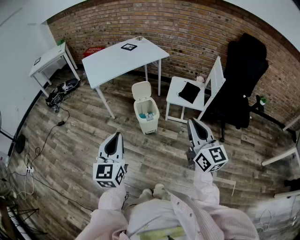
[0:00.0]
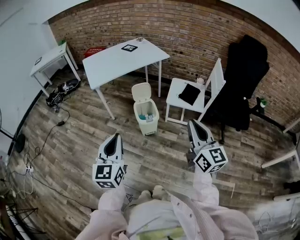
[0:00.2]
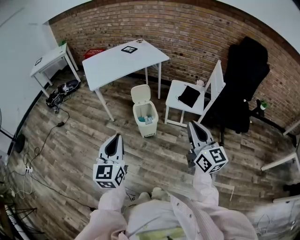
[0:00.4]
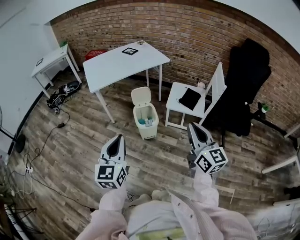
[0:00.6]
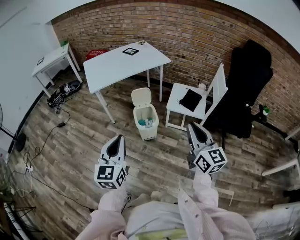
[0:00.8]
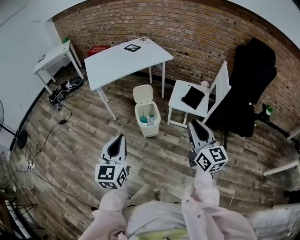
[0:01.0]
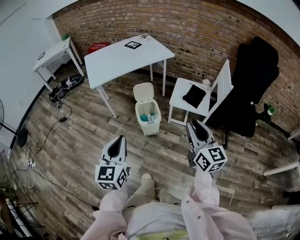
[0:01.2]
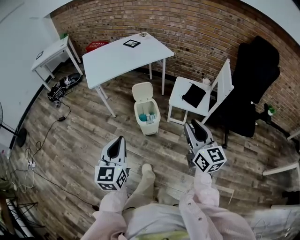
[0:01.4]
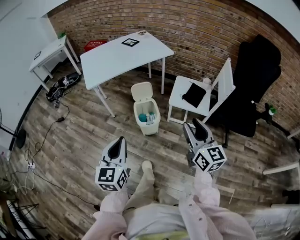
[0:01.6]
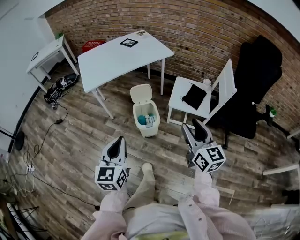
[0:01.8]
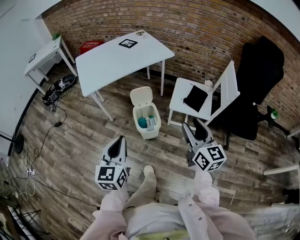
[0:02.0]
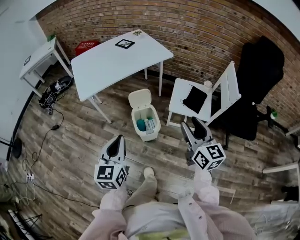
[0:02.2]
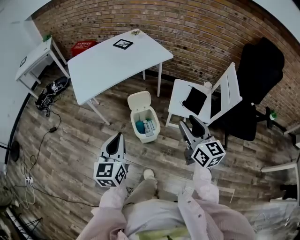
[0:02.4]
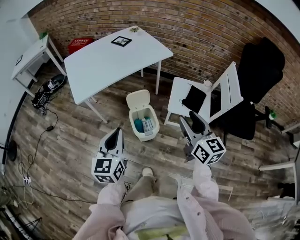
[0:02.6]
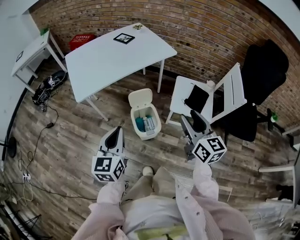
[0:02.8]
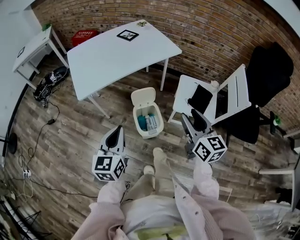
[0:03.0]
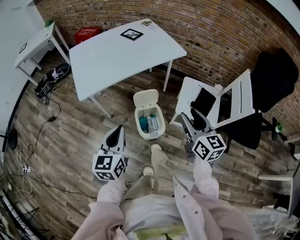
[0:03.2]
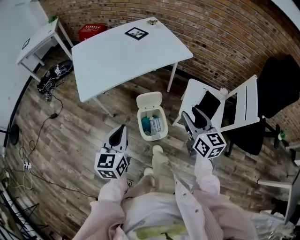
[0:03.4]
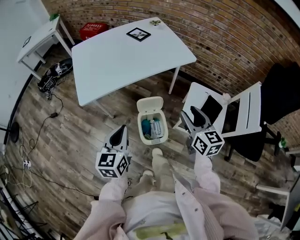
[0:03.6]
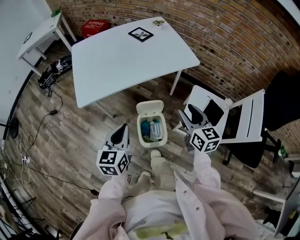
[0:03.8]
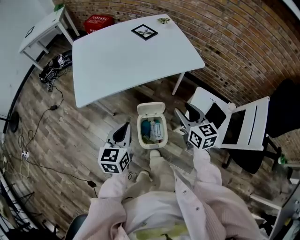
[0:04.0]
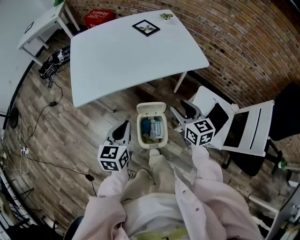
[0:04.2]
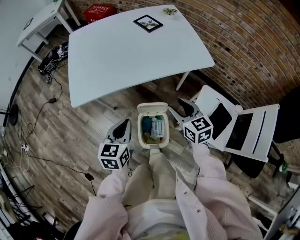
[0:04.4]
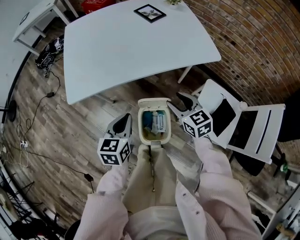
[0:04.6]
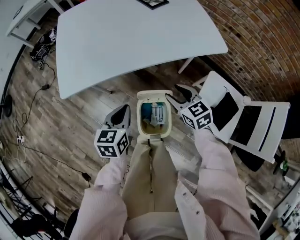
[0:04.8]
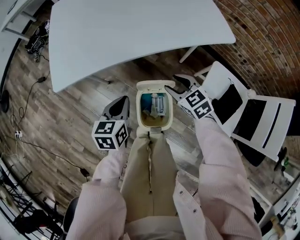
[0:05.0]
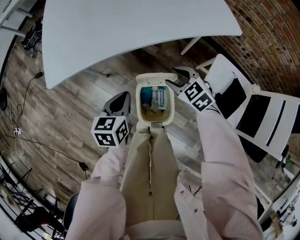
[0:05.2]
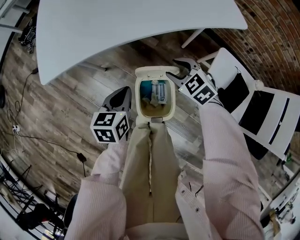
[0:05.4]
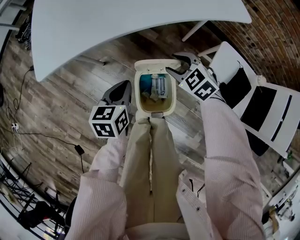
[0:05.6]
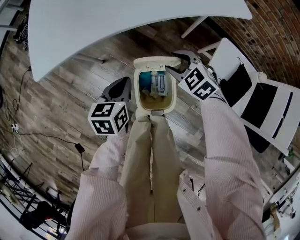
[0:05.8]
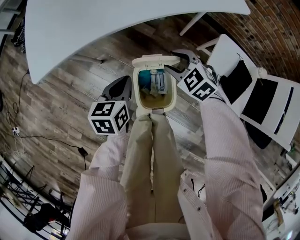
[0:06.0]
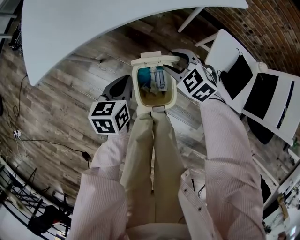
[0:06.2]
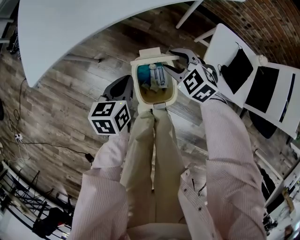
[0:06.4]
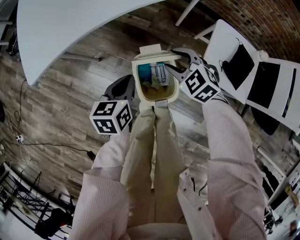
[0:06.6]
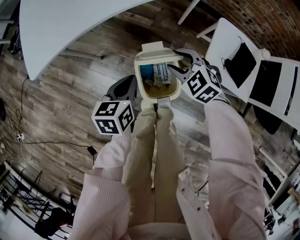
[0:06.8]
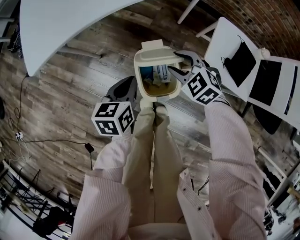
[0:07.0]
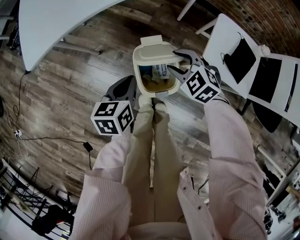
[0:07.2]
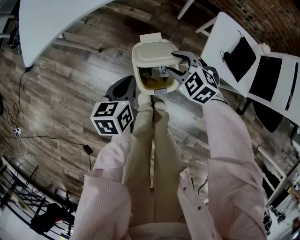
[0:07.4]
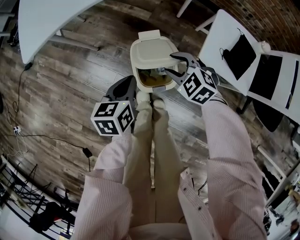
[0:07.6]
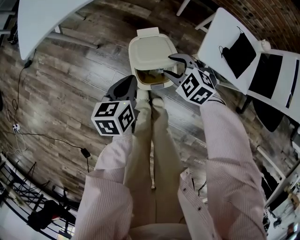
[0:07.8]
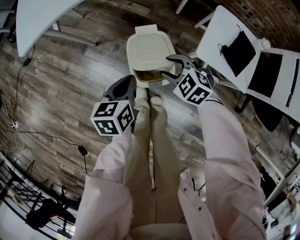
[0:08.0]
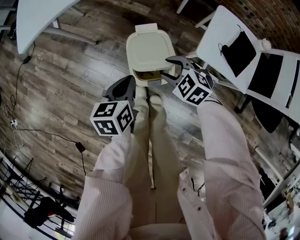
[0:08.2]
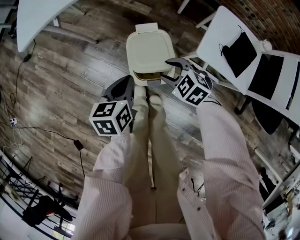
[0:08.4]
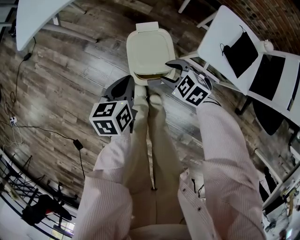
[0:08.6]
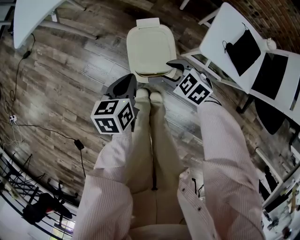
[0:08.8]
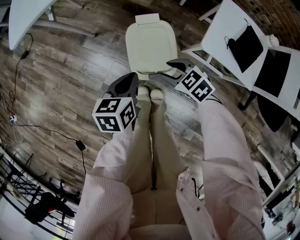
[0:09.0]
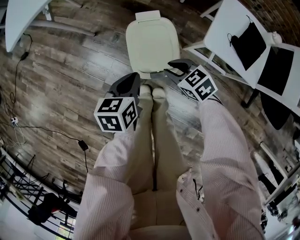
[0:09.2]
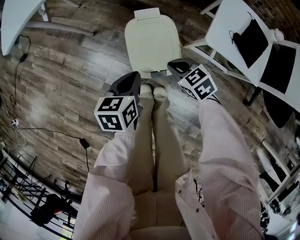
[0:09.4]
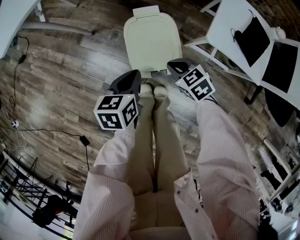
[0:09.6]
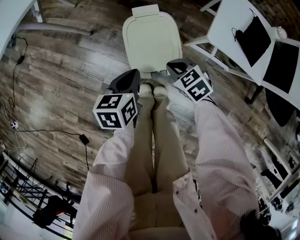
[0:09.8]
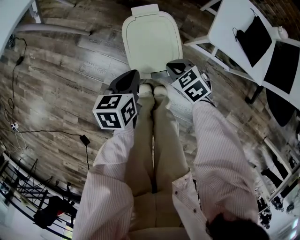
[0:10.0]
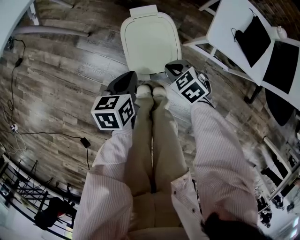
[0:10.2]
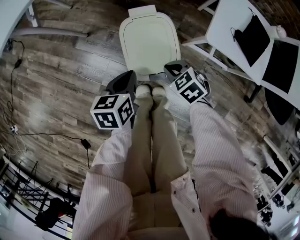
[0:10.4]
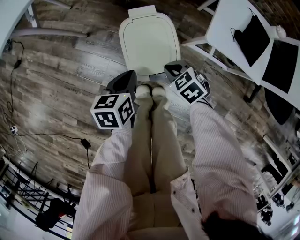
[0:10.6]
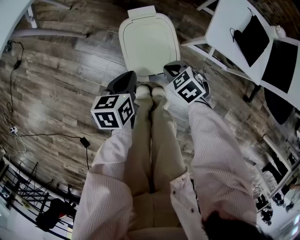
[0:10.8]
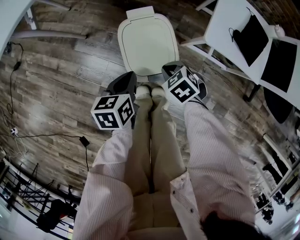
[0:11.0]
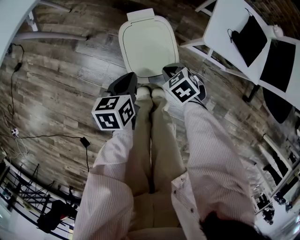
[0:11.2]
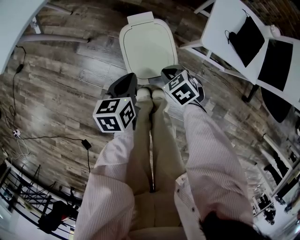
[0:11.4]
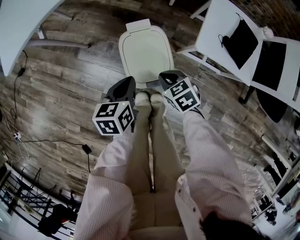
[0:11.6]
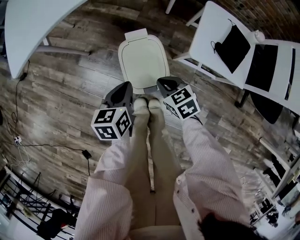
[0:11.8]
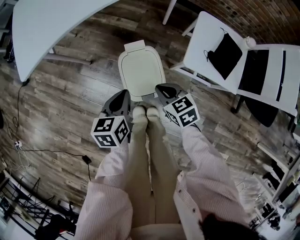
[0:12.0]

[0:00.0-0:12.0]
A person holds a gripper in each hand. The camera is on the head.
0:00.0 to 0:01.6: The right gripper shifts about 10 cm forward and downward, and opens up. Meanwhile the left gripper travels forward by approximately 5 cm.
0:01.6 to 0:03.0: The two grippers go some 20 cm forward.
0:03.0 to 0:04.4: Both grippers travel together forward and downward, about 25 cm. The right gripper rotates about 30 degrees.
0:04.4 to 0:06.0: The grippers both shift downward by approximately 15 cm. The right gripper changes its angle by approximately 40 degrees.
0:06.0 to 0:07.6: Both grippers travel together backward, about 10 cm.
0:07.6 to 0:09.0: The left gripper moves about 5 cm; the right gripper travels downward and backward by roughly 10 cm, and turns by roughly 20 degrees.
0:09.0 to 0:10.4: The two grippers go about 5 cm downward. The right gripper closes.
0:10.4 to 0:12.0: Both grippers travel together upward, approximately 15 cm. The right gripper rotates roughly 30 degrees.

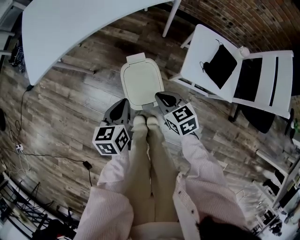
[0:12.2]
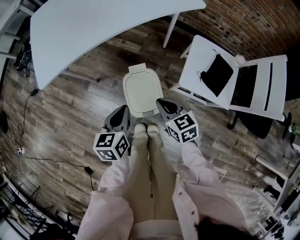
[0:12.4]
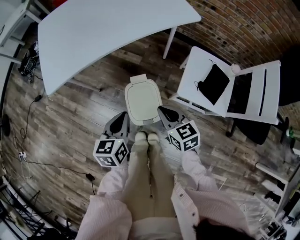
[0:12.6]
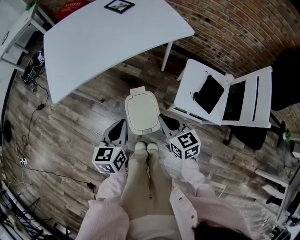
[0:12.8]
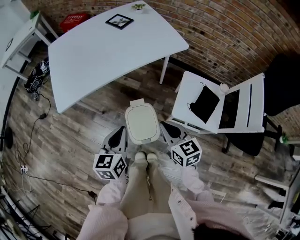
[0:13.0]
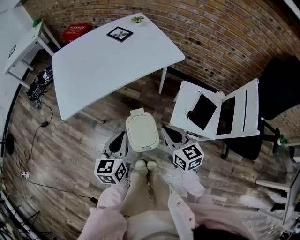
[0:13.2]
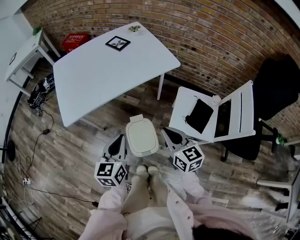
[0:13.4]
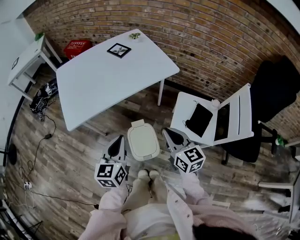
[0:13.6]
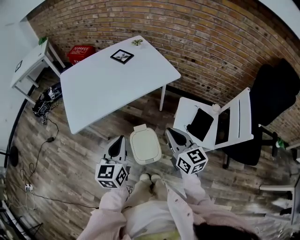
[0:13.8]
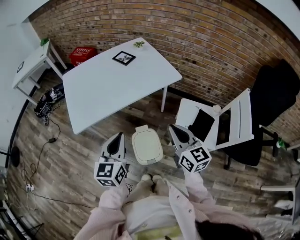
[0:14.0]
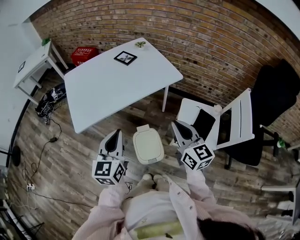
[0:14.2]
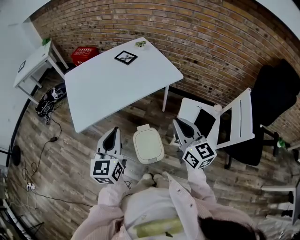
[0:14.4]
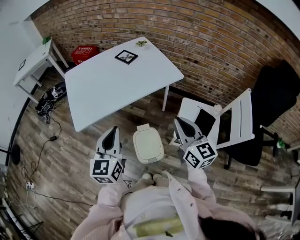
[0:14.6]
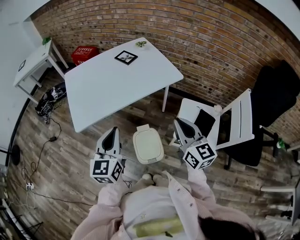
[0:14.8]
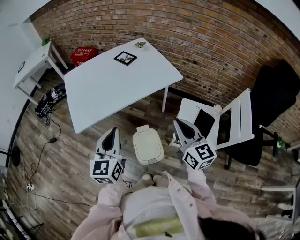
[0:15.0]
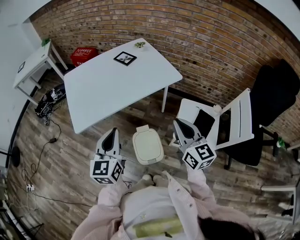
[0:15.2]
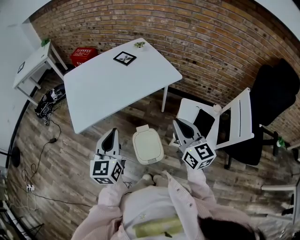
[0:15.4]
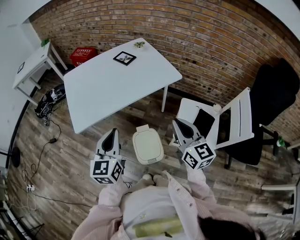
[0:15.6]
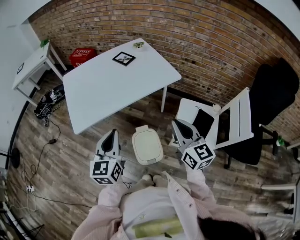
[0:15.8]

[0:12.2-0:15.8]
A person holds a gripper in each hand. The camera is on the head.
0:12.2 to 0:14.0: Both grippers travel together upward, some 30 cm. The left gripper changes its angle by approximately 30 degrees; the right gripper tilts its fingers about 40 degrees upward.
0:14.0 to 0:15.8: There are only small adjustments of the grippers.

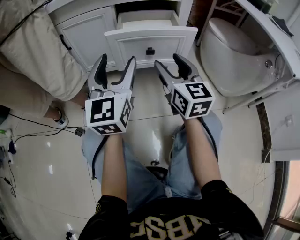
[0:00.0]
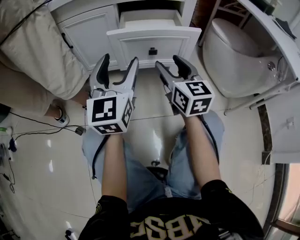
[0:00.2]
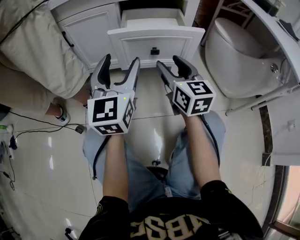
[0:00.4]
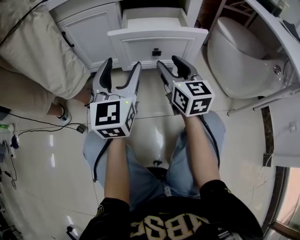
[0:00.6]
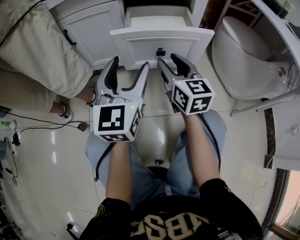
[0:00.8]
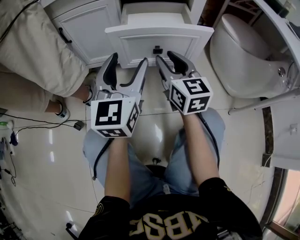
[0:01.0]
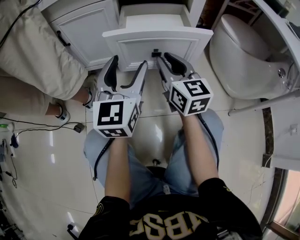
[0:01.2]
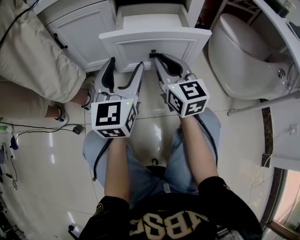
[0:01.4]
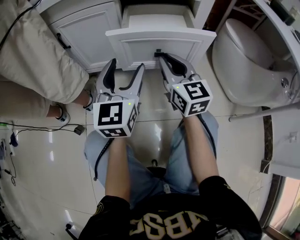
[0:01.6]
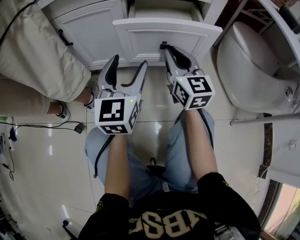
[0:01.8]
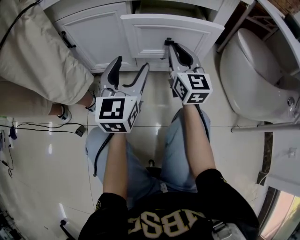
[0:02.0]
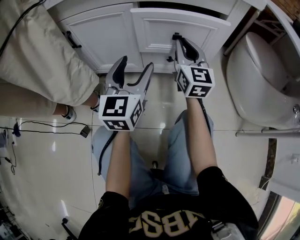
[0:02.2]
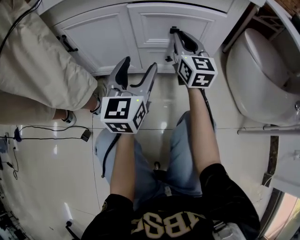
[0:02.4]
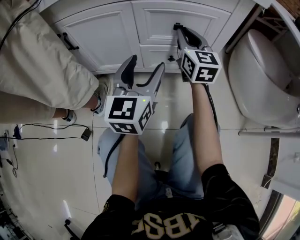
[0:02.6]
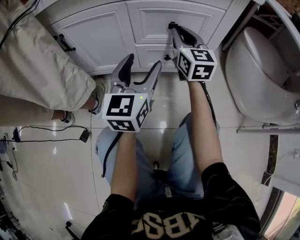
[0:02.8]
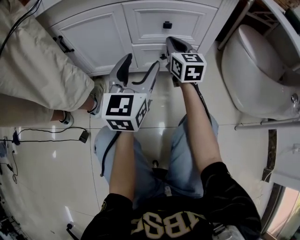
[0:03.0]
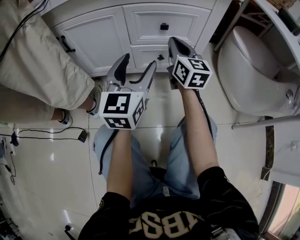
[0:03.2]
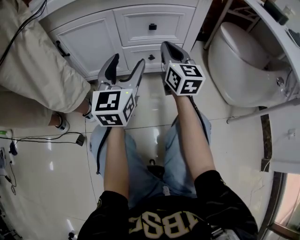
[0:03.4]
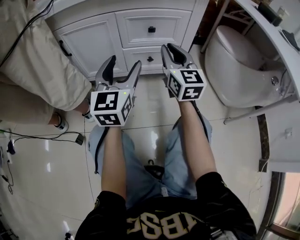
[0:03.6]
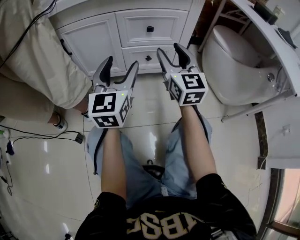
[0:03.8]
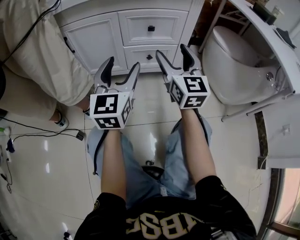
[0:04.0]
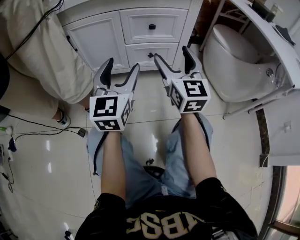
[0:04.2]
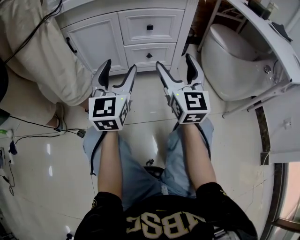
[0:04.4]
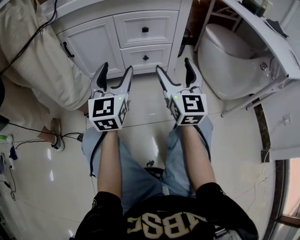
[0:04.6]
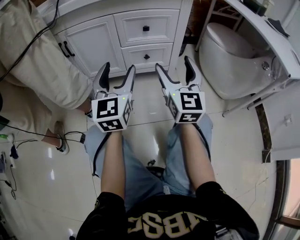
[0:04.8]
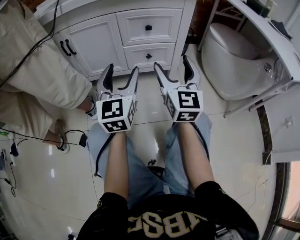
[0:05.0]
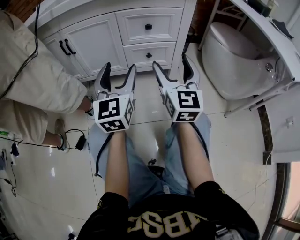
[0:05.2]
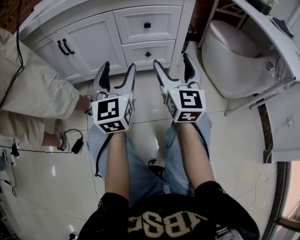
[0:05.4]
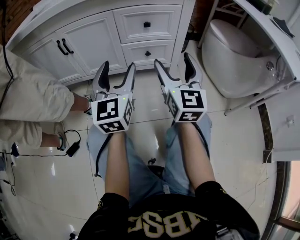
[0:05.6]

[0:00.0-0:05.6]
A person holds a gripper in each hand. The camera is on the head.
0:00.0 to 0:01.4: The right gripper is displaced forward by approximately 5 cm, and closes its fingers. The left gripper moves about 5 cm.
0:01.4 to 0:02.8: The left gripper moves forward, approximately 10 cm; the right gripper is displaced forward by some 20 cm.
0:02.8 to 0:04.2: The left gripper goes some 15 cm backward and upward. The right gripper is displaced backward by approximately 25 cm, and opens its fingers.
0:04.2 to 0:05.6: The grippers move only a little.

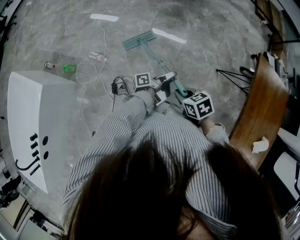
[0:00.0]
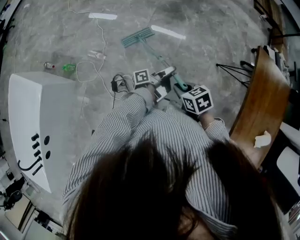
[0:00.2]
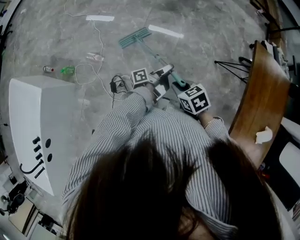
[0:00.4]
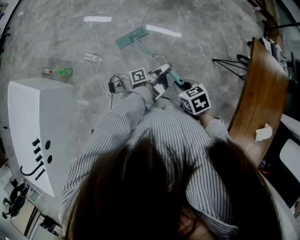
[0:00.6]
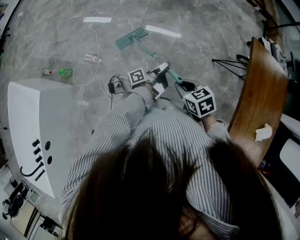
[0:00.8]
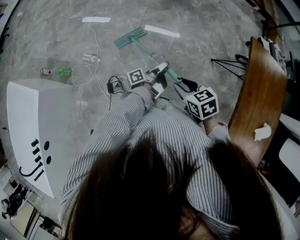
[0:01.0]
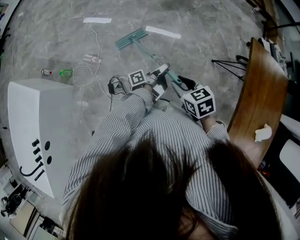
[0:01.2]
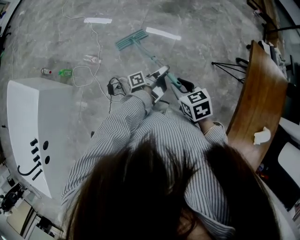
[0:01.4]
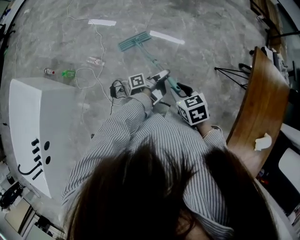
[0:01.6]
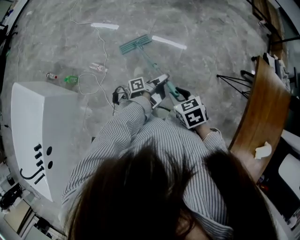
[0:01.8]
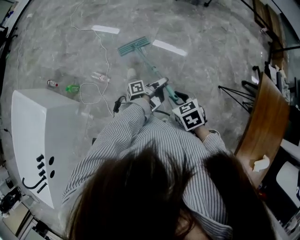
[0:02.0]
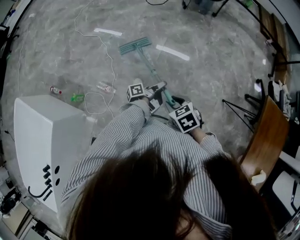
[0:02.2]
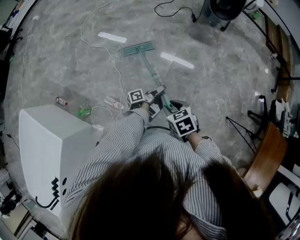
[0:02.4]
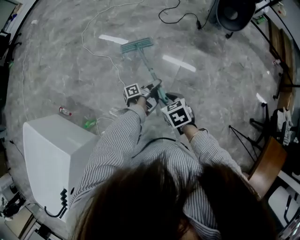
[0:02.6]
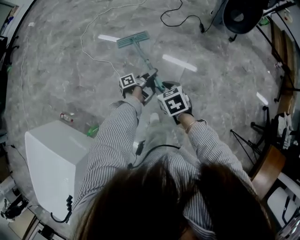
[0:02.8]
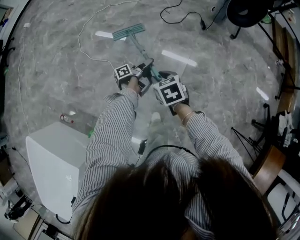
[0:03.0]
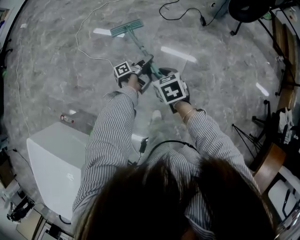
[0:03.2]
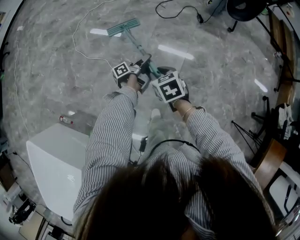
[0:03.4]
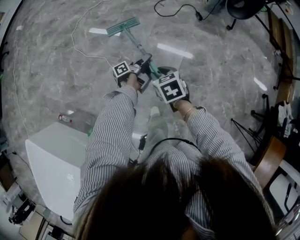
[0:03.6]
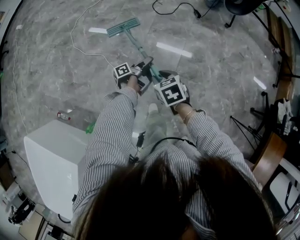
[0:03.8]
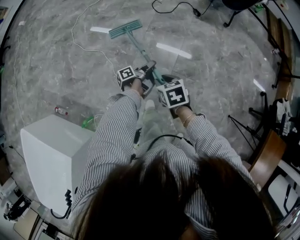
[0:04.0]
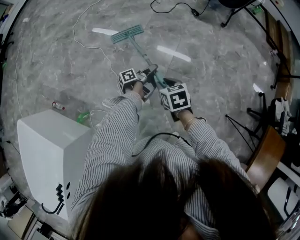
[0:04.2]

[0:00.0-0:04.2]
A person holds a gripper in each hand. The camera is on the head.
0:00.0 to 0:01.4: The right gripper changes place by about 5 cm, and opens its fingers.
0:01.4 to 0:02.8: The right gripper moves some 70 cm.
0:02.8 to 0:04.2: The right gripper shifts by about 15 cm.
